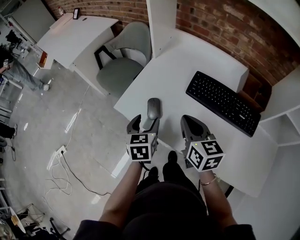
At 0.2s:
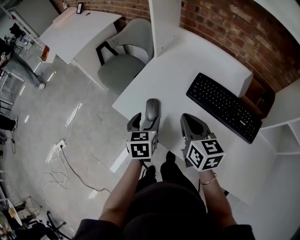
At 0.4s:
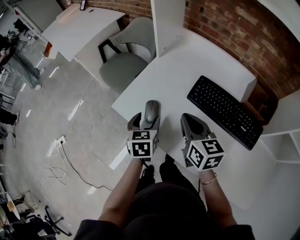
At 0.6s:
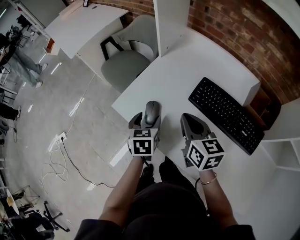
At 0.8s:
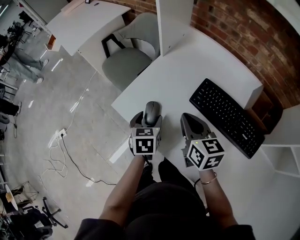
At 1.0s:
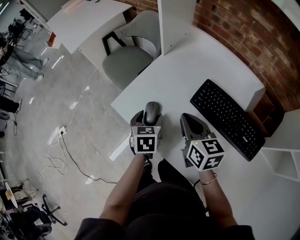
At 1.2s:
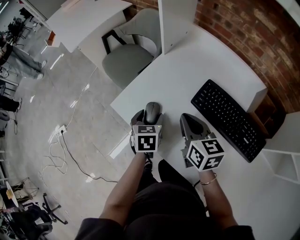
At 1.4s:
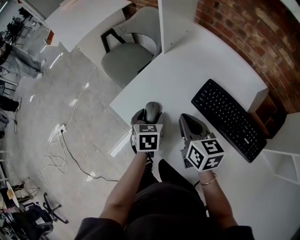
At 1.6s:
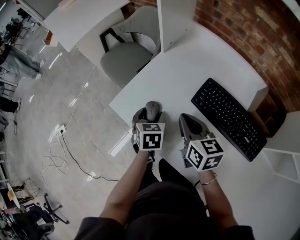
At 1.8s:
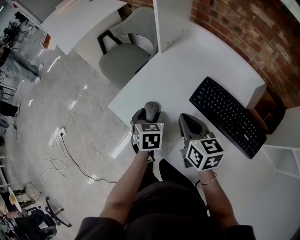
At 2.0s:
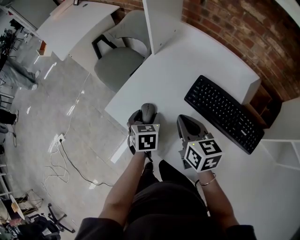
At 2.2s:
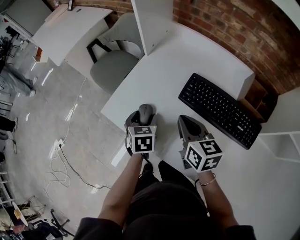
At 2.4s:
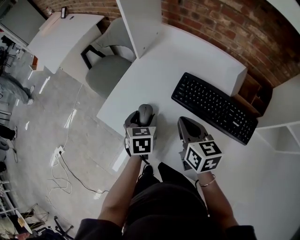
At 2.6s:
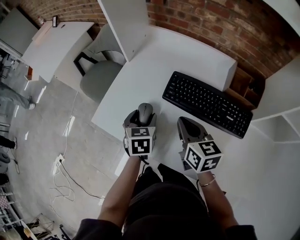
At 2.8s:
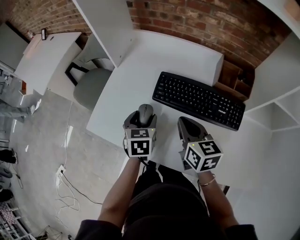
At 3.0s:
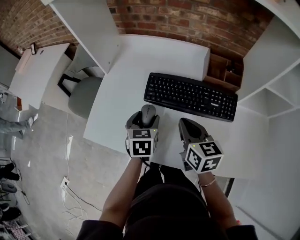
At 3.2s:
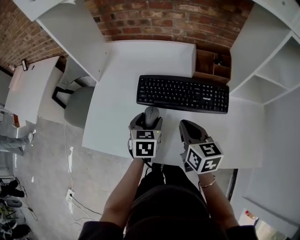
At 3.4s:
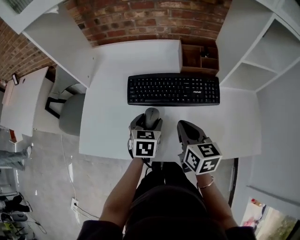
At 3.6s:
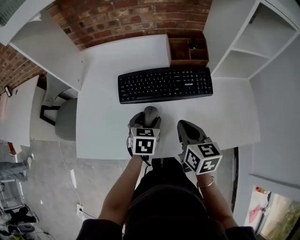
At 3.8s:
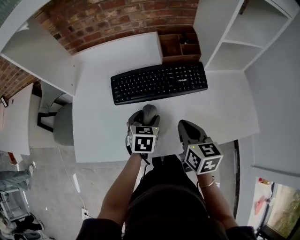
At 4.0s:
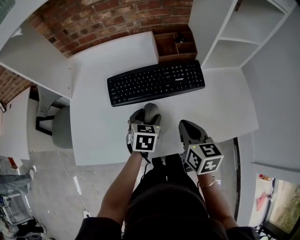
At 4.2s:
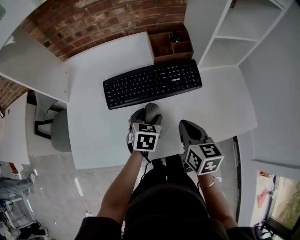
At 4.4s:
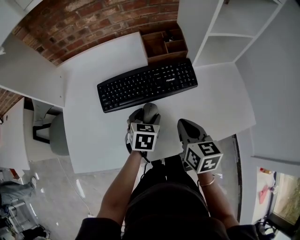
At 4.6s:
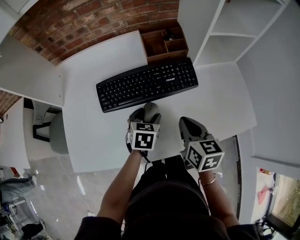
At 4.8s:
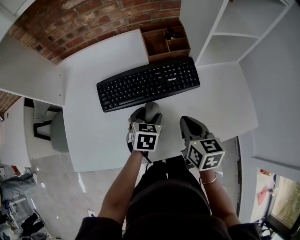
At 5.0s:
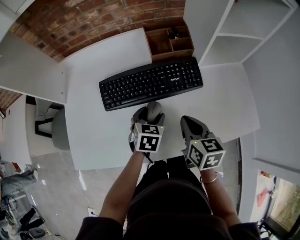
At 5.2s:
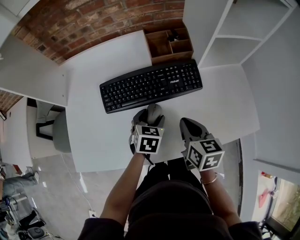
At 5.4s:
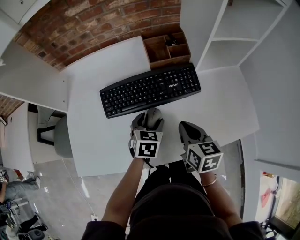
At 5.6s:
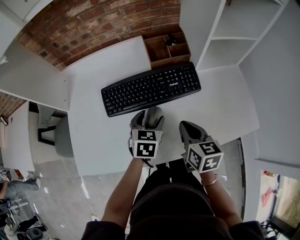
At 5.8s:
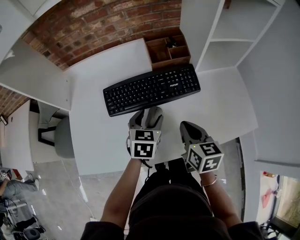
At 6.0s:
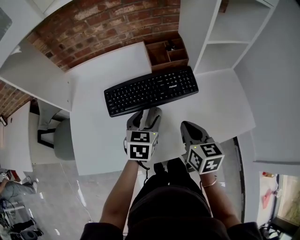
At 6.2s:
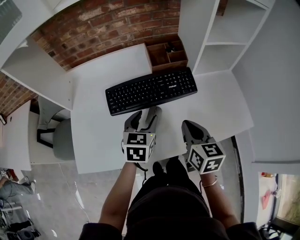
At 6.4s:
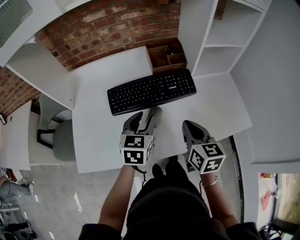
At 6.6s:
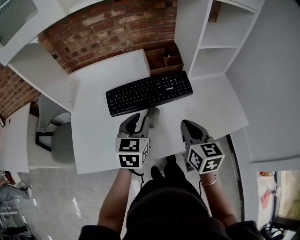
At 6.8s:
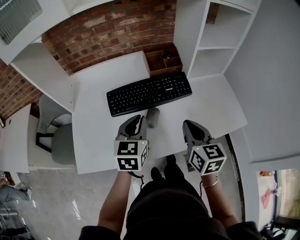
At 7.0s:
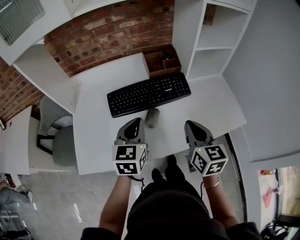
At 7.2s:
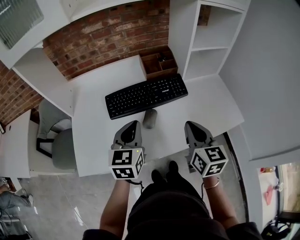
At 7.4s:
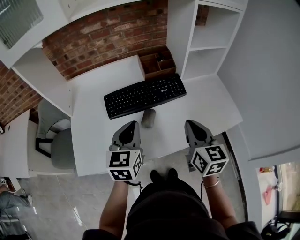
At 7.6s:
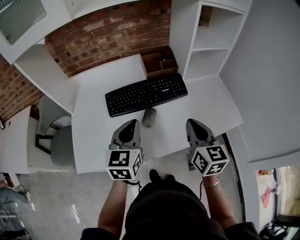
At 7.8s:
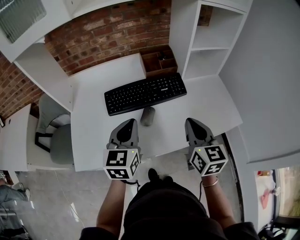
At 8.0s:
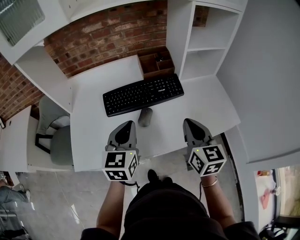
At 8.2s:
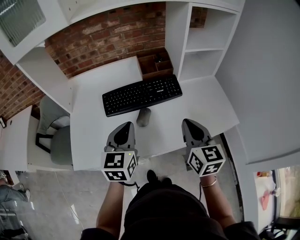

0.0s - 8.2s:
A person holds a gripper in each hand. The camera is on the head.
0.0s - 1.6s: The right gripper moves forward, some 10 cm; the left gripper is displaced downward and forward by about 10 cm.
1.6s - 3.2s: The right gripper shifts by approximately 20 cm, and rotates some 40 degrees; the left gripper changes place by roughly 20 cm, and swivels approximately 40 degrees.
3.2s - 5.0s: The right gripper travels to the right by some 10 cm, and rotates some 20 degrees; the left gripper shifts about 15 cm to the right and downward, and changes its angle by some 30 degrees.
5.0s - 6.6s: The left gripper goes approximately 15 cm upward, changes its angle by approximately 20 degrees, and closes its fingers, while the right gripper goes approximately 10 cm upward and backward.
6.6s - 8.2s: The right gripper goes approximately 5 cm upward, while the left gripper travels backward and upward by about 10 cm.

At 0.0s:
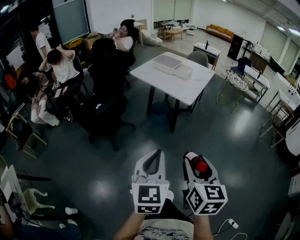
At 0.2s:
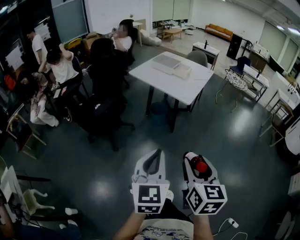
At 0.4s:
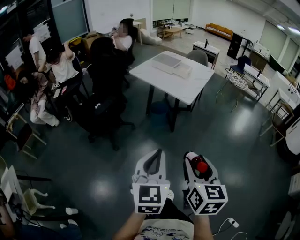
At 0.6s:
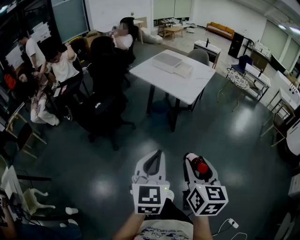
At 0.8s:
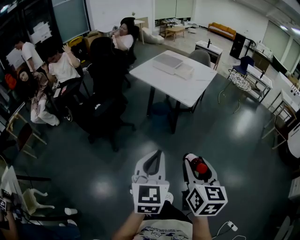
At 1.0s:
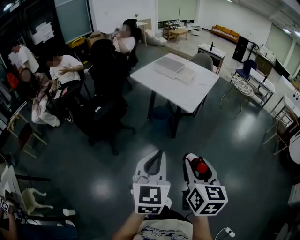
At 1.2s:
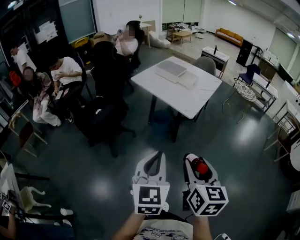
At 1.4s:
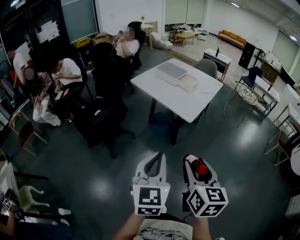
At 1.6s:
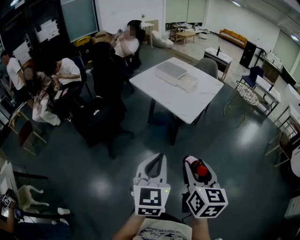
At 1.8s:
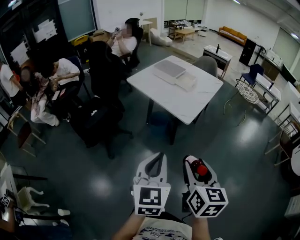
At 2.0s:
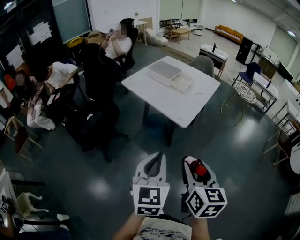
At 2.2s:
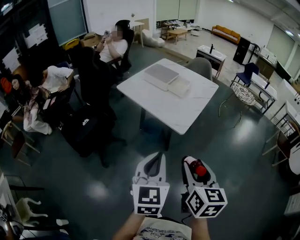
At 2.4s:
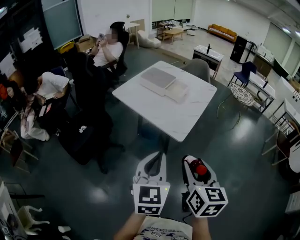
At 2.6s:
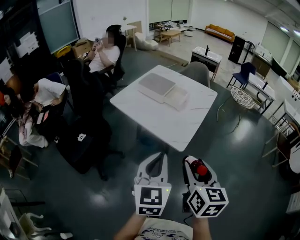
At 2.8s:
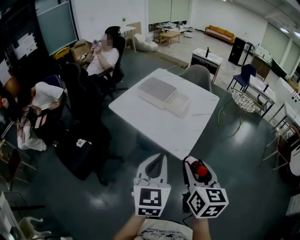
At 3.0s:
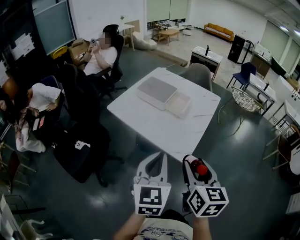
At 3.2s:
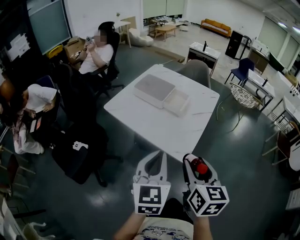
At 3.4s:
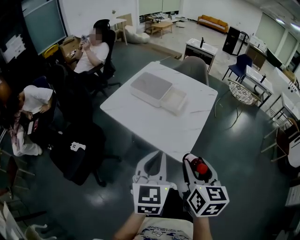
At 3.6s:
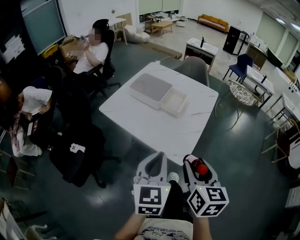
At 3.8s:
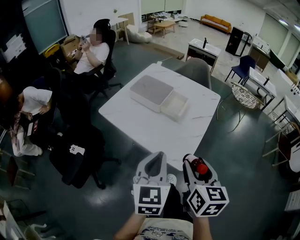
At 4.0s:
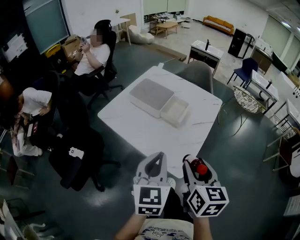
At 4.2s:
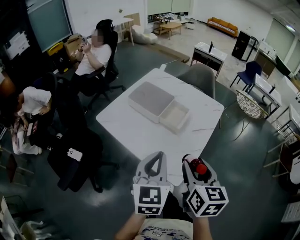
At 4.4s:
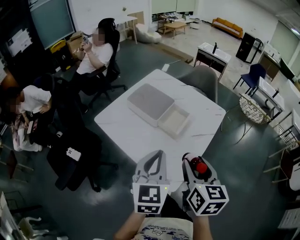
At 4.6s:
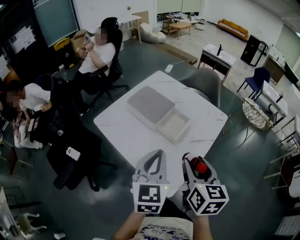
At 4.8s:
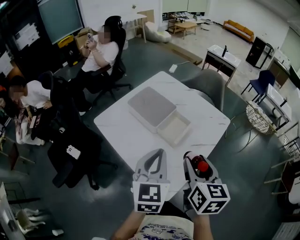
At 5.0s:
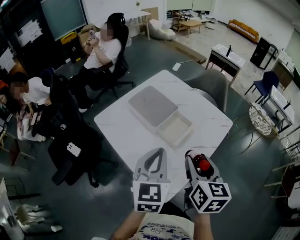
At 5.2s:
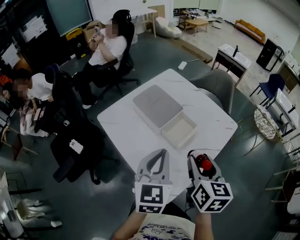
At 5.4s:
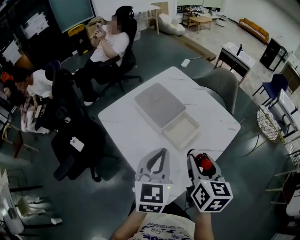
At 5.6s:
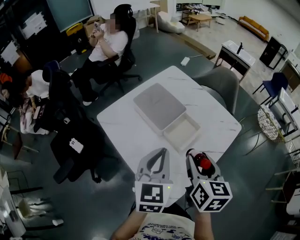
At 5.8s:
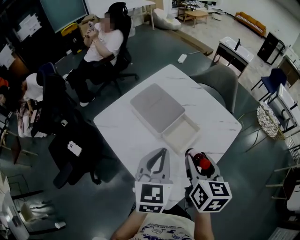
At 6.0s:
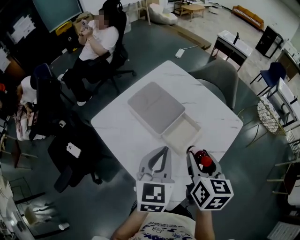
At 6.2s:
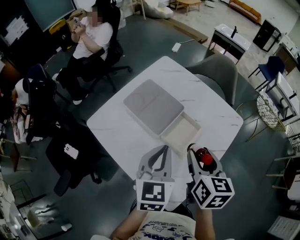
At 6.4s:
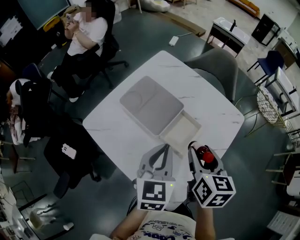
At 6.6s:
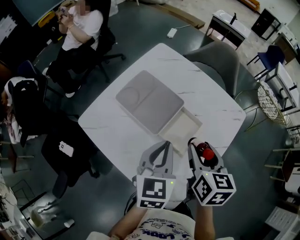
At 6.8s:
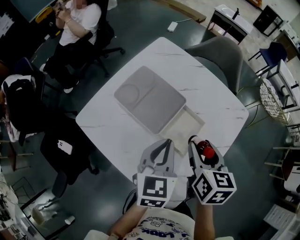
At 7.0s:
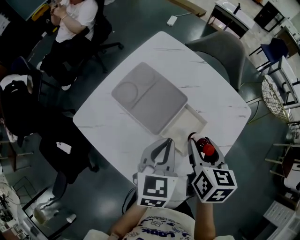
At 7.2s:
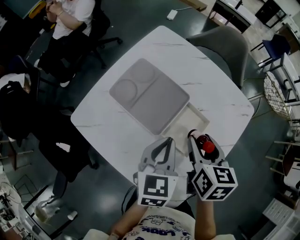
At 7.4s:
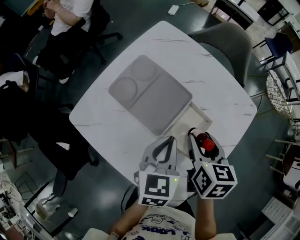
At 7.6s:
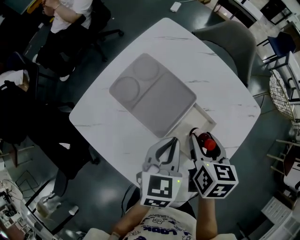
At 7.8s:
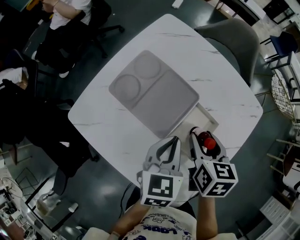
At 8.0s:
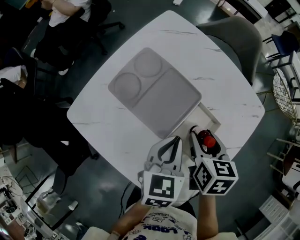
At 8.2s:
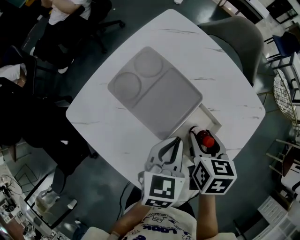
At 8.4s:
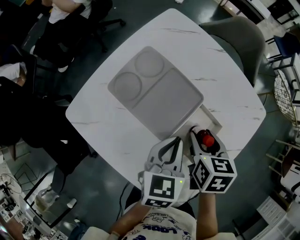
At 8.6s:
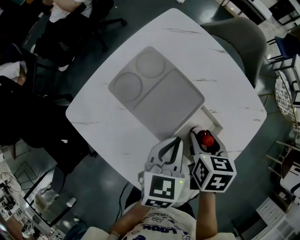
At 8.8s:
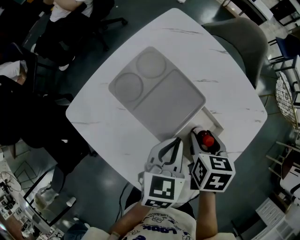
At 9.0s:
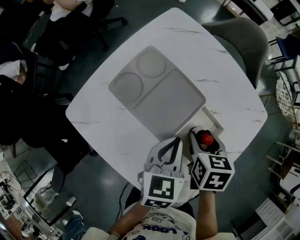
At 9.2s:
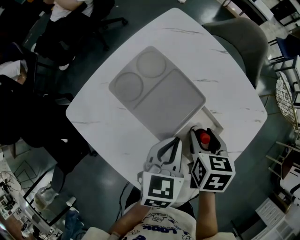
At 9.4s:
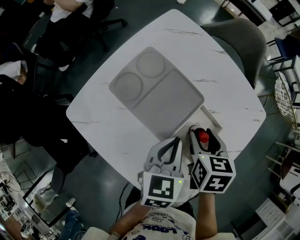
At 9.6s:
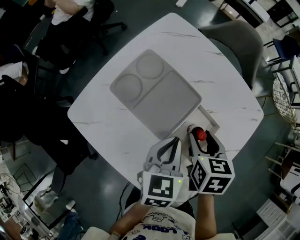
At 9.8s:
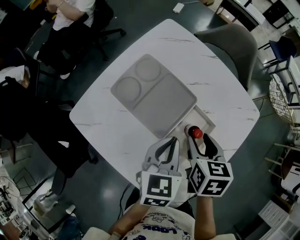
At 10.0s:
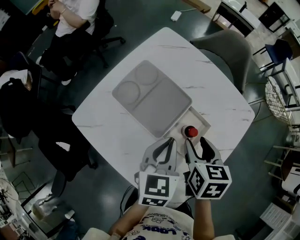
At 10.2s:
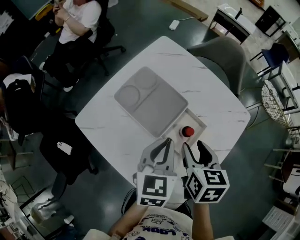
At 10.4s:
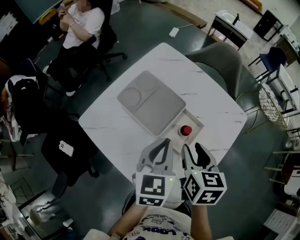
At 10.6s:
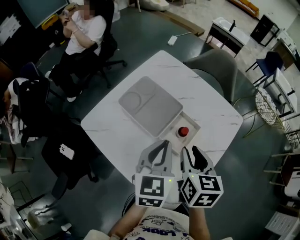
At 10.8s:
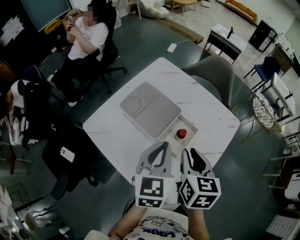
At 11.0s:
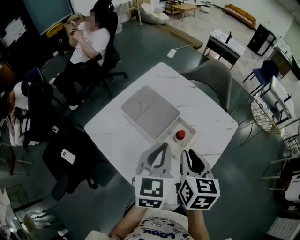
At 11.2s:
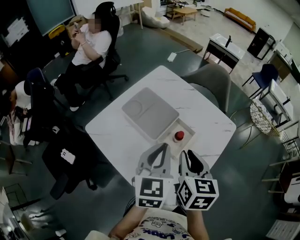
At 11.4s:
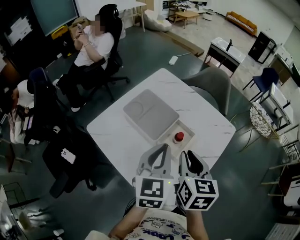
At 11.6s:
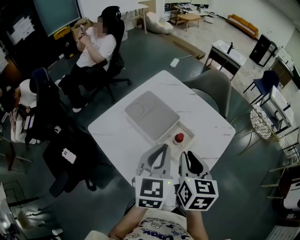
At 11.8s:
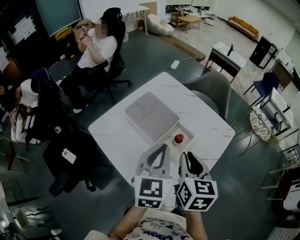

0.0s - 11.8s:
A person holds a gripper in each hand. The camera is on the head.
0.0s - 1.4s: Both grippers travel together forward, about 15 cm.
1.4s - 3.0s: The two grippers go approximately 30 cm forward.
3.0s - 4.4s: The grippers both shift forward by about 20 cm.
4.4s - 6.0s: Both grippers move forward, about 15 cm.
6.0s - 7.4s: Both grippers move downward and forward, approximately 15 cm.
7.4s - 8.8s: The right gripper travels downward by some 5 cm.
8.8s - 10.4s: The left gripper travels upward by some 10 cm. Meanwhile the right gripper goes about 15 cm upward and backward.
10.4s - 11.8s: The left gripper is displaced upward by approximately 10 cm. The right gripper heads upward and backward, covering about 10 cm, and closes its fingers.

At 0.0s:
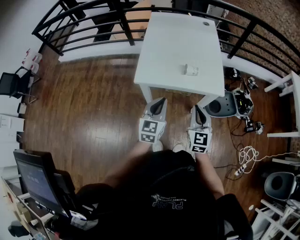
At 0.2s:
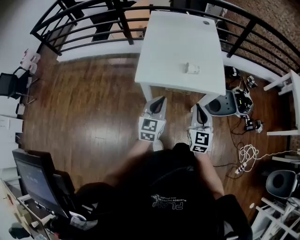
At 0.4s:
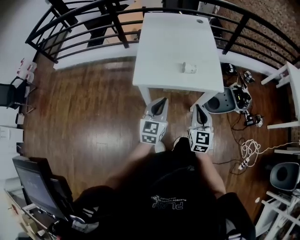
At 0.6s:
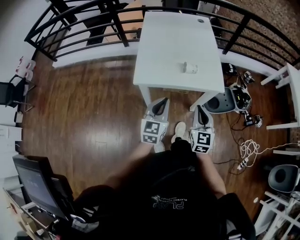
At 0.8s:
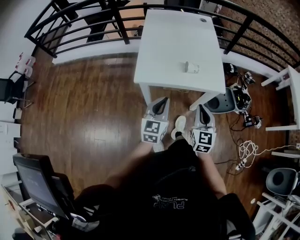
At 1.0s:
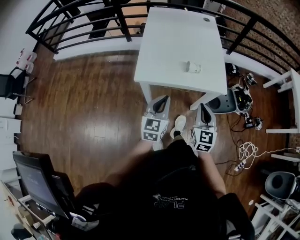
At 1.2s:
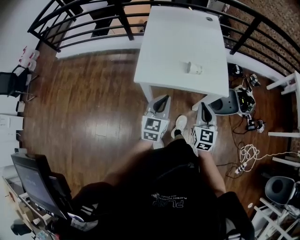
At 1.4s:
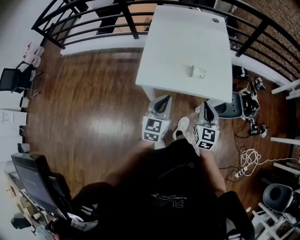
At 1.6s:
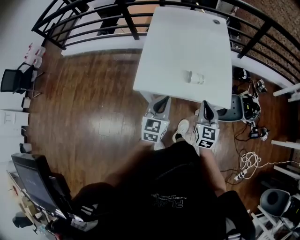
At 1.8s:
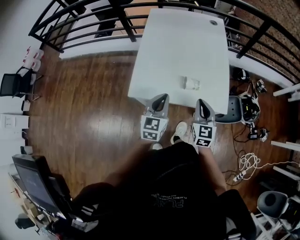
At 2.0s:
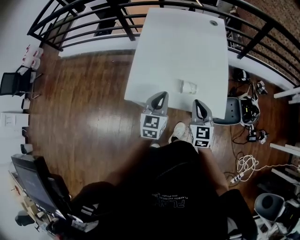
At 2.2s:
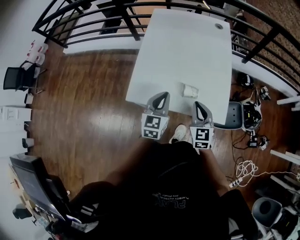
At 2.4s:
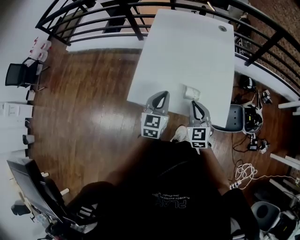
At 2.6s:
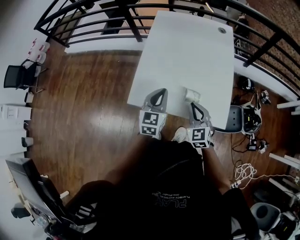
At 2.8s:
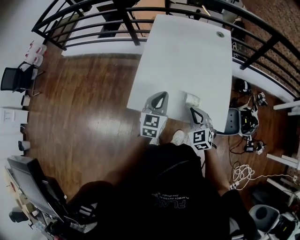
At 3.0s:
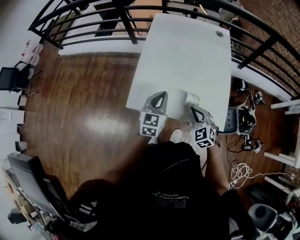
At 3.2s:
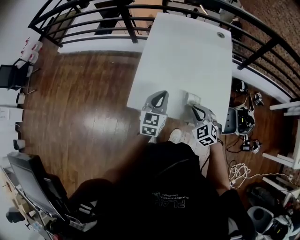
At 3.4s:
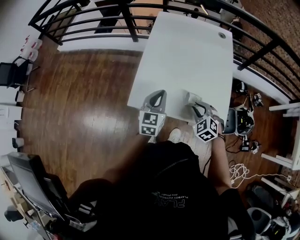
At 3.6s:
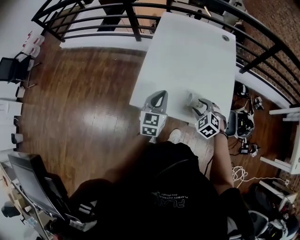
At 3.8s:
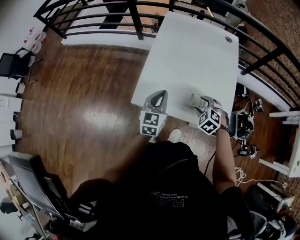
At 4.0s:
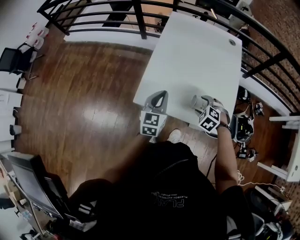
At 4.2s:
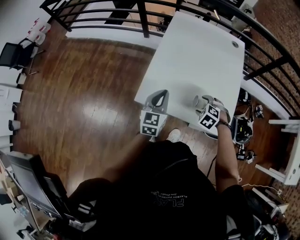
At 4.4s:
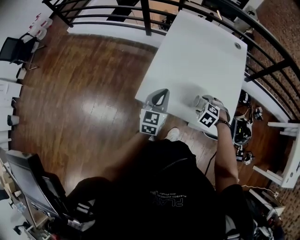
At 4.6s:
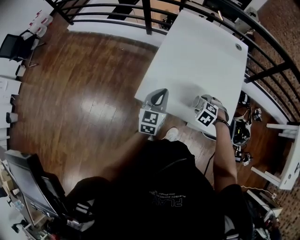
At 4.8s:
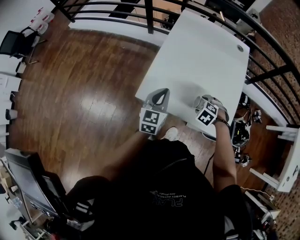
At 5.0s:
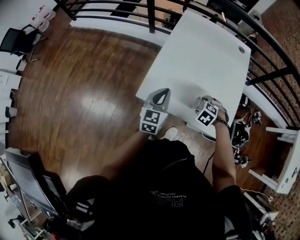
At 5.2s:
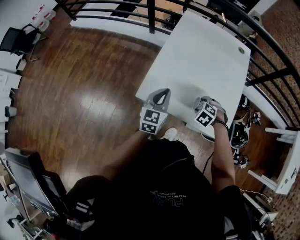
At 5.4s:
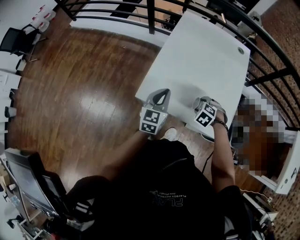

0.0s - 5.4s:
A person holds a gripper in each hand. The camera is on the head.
0.0s - 1.4s: Both grippers travel together forward, some 5 cm.
1.4s - 2.8s: The grippers both shift forward by about 15 cm. The right gripper changes its angle by roughly 40 degrees.
2.8s - 4.0s: The right gripper ends up about 5 cm from where it was, angles its fingers downward, by roughly 40 degrees, and opens its fingers. The left gripper shifts some 5 cm to the left.
4.0s - 5.4s: There are only small adjustments of the grippers.
